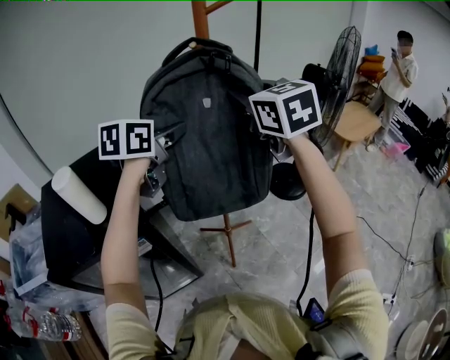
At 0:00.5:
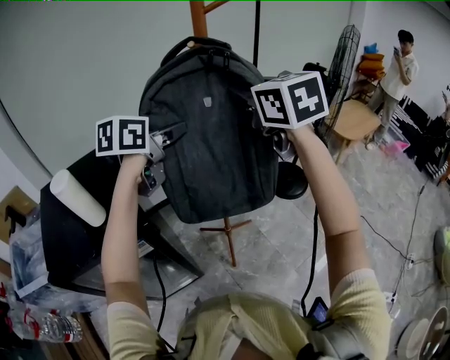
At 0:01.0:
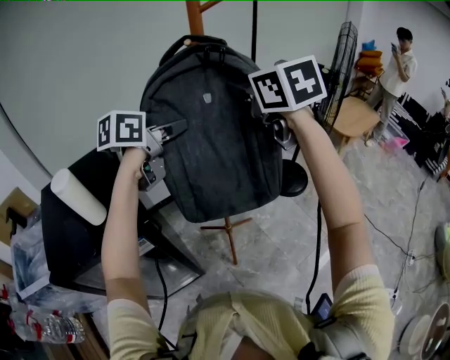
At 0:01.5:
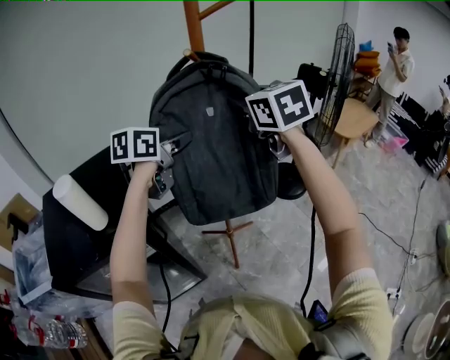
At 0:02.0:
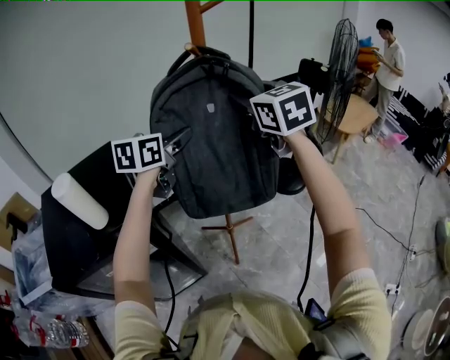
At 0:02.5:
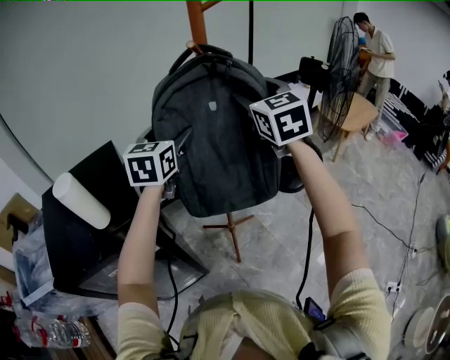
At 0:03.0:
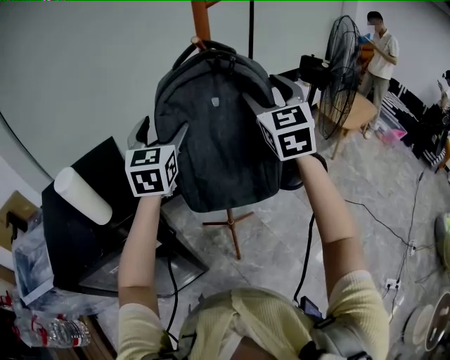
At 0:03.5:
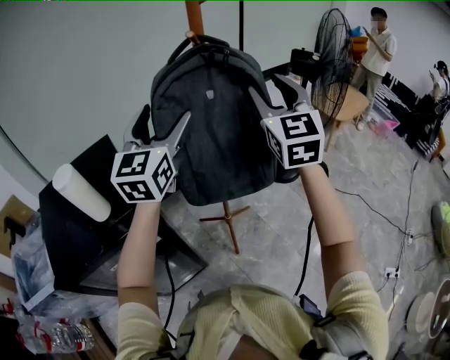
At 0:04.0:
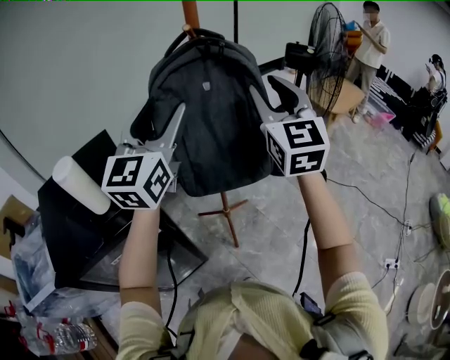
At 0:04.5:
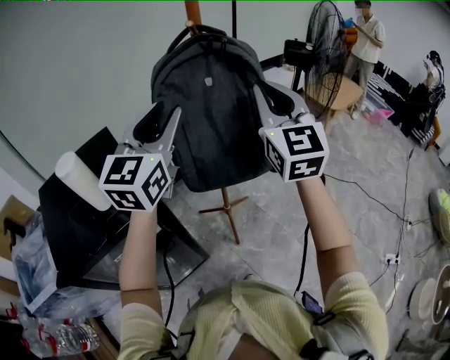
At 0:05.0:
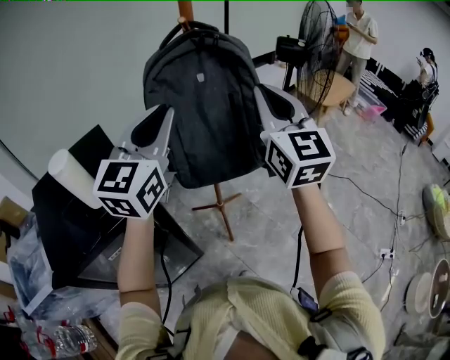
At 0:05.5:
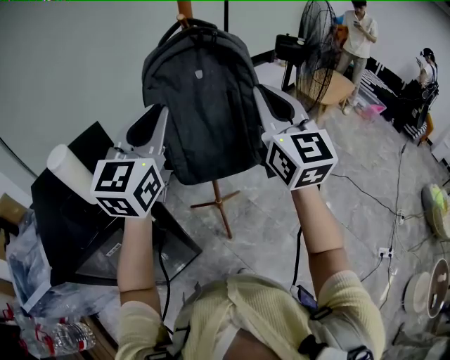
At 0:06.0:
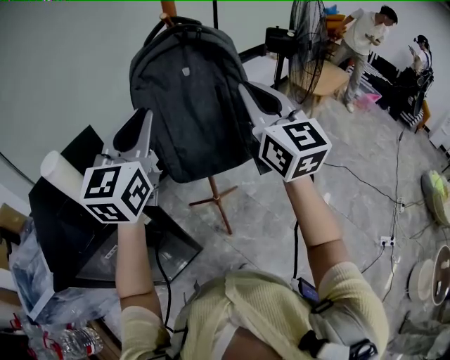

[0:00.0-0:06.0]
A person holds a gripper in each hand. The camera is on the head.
0:00.0 to 0:02.0: The grippers stay close to where they were, moving slightly.
0:02.0 to 0:04.0: The right gripper goes roughly 10 cm backward, rotates roughly 30 degrees, and opens, then closes once more; the left gripper travels backward and upward by some 15 cm, changes its angle by approximately 40 degrees, and opens, then closes once more.
0:04.0 to 0:06.0: The left gripper closes its fingers. Meanwhile the right gripper shifts some 5 cm backward, and closes up.

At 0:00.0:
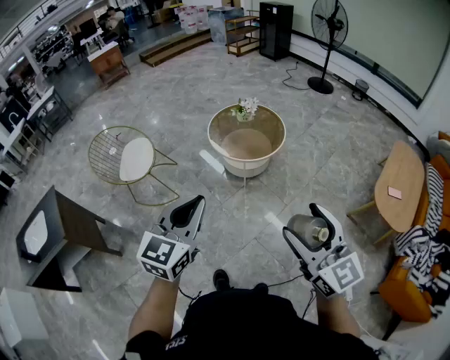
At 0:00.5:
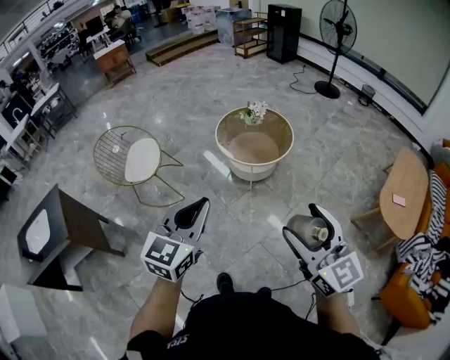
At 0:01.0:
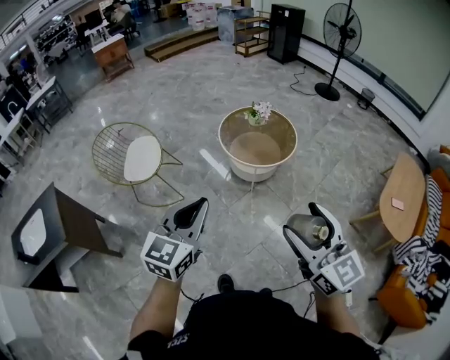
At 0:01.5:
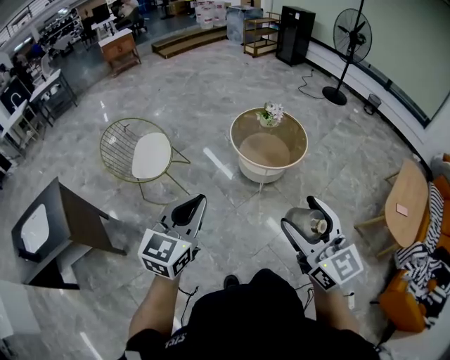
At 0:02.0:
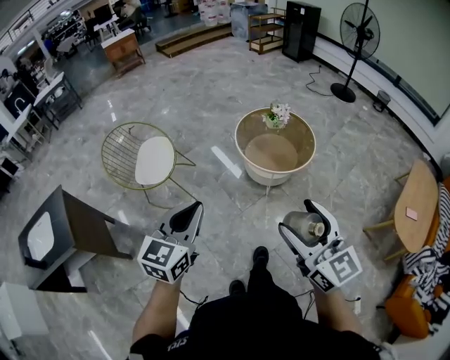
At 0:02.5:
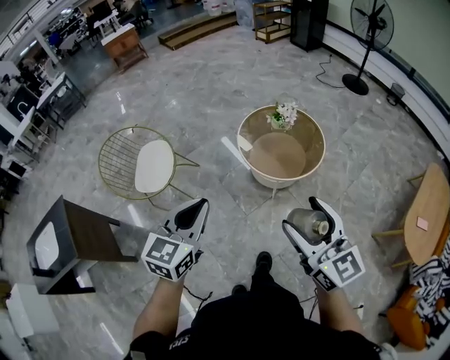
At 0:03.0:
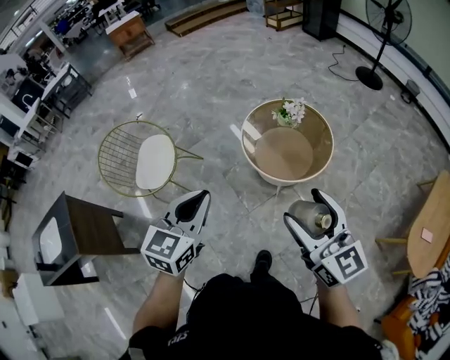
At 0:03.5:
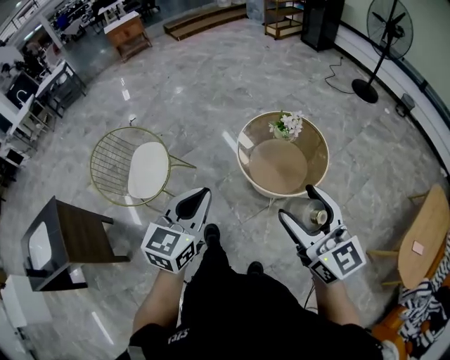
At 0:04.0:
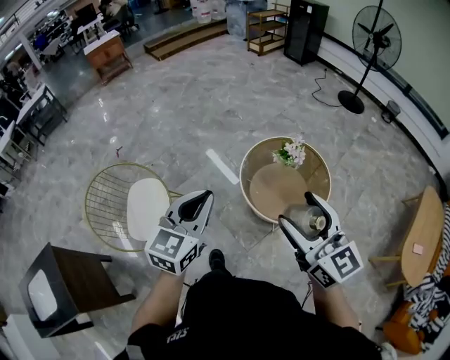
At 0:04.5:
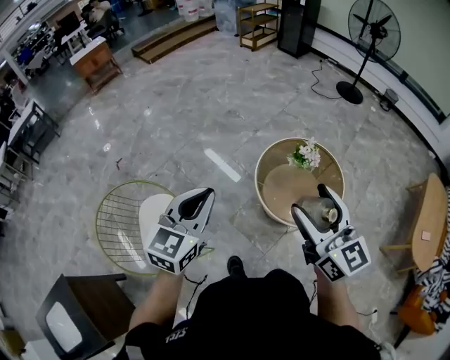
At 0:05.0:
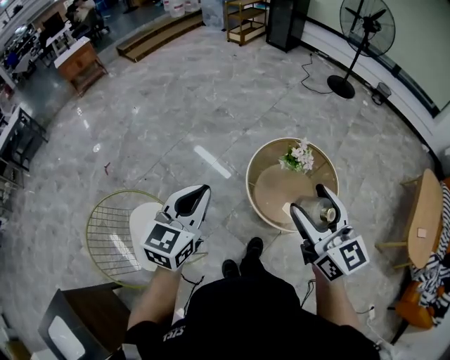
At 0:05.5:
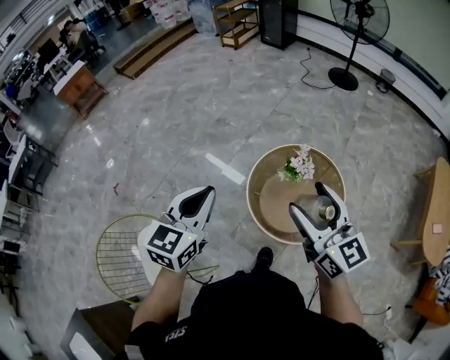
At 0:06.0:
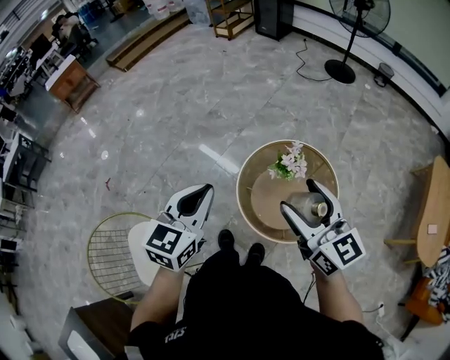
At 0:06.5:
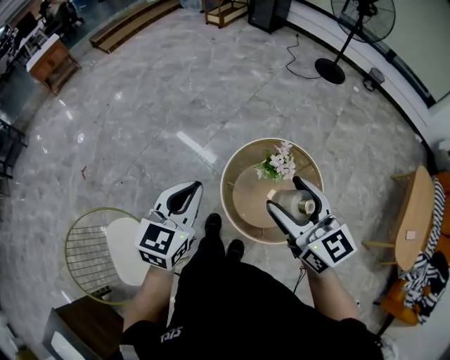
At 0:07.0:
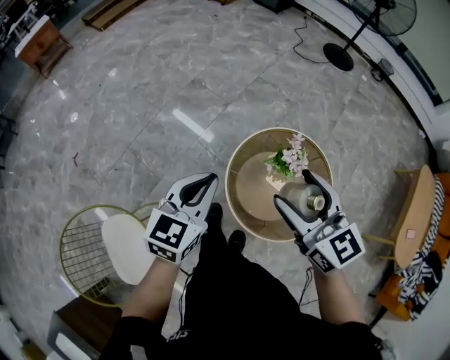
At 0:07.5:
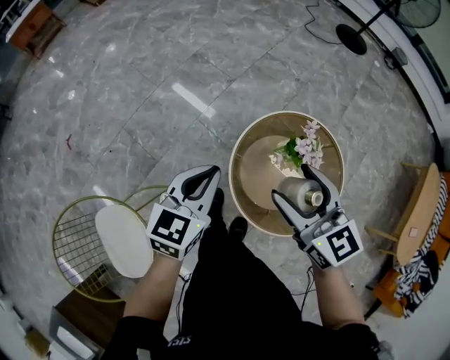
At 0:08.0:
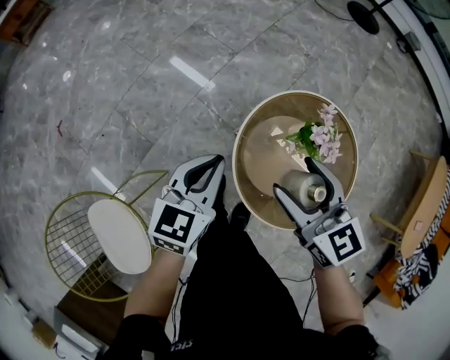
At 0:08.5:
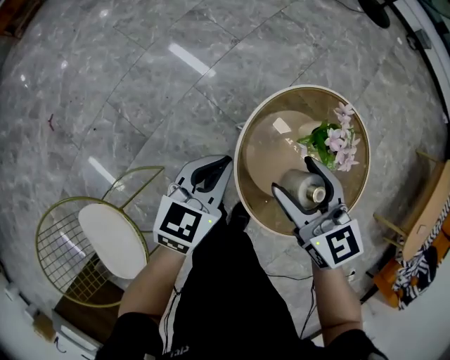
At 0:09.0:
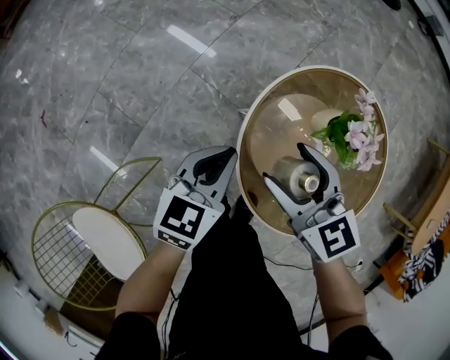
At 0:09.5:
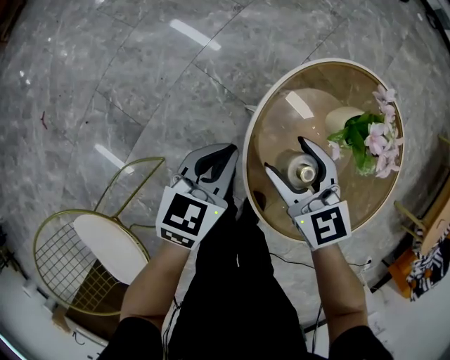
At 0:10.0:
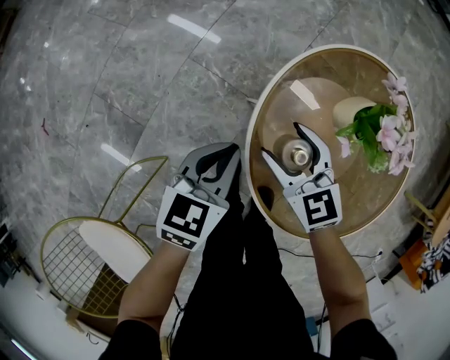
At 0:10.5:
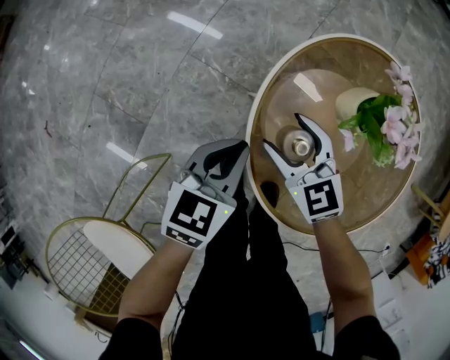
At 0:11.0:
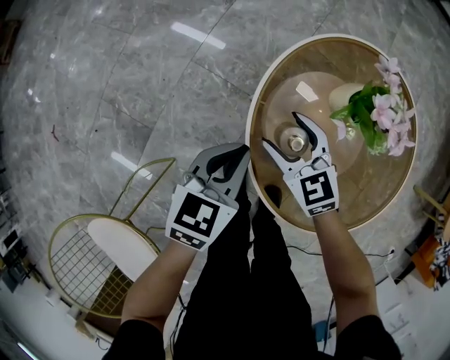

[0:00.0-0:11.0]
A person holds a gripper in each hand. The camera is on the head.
0:00.0 to 0:02.0: The two grippers go about 25 cm to the left and forward.
0:02.0 to 0:03.5: The left gripper is displaced forward and to the right by about 30 cm. The right gripper is displaced forward by some 30 cm.
0:03.5 to 0:05.5: Both grippers move forward, roughly 40 cm. The left gripper rotates roughly 20 degrees. Meanwhile the right gripper turns by approximately 20 degrees.
0:05.5 to 0:07.5: The grippers both shift downward and forward by about 30 cm. The right gripper swivels about 20 degrees.
0:07.5 to 0:09.0: Both grippers travel together downward, some 30 cm.
0:09.0 to 0:11.0: The left gripper goes approximately 5 cm downward. Meanwhile the right gripper moves downward, approximately 15 cm.

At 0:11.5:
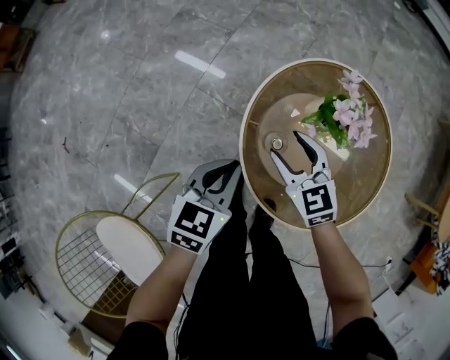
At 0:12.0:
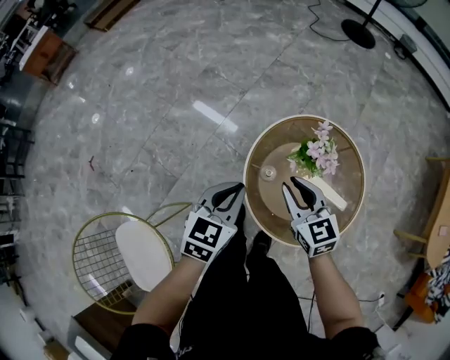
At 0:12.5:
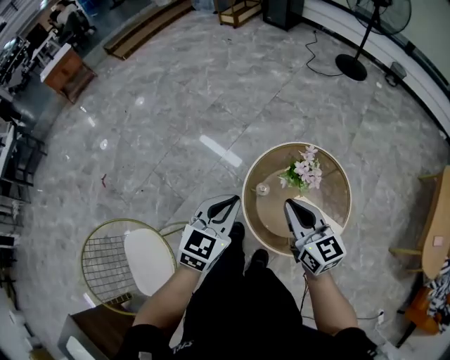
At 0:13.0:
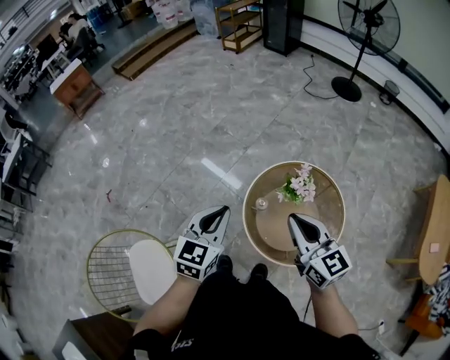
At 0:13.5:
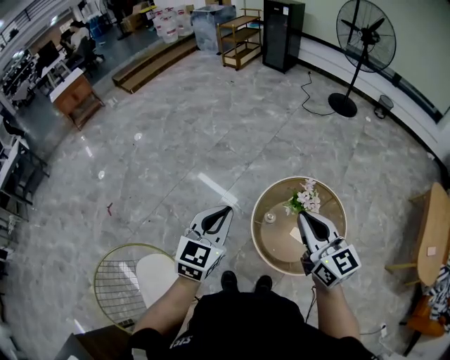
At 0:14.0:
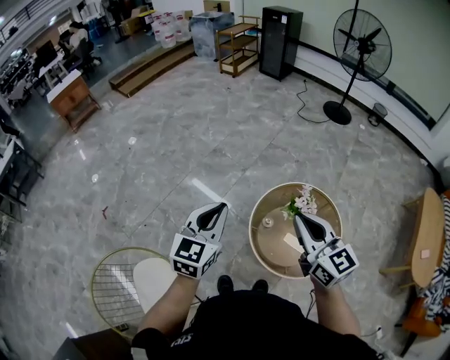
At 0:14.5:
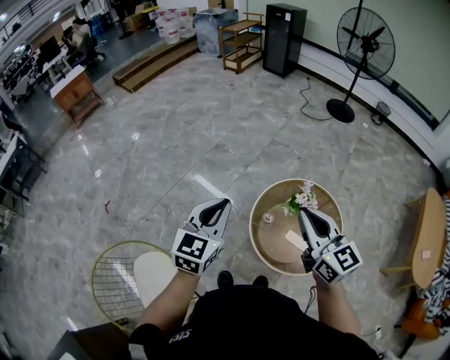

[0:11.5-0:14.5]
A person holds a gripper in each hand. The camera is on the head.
0:11.5 to 0:13.0: The right gripper travels upward and backward by some 50 cm, changes its angle by approximately 30 degrees, and closes up. The left gripper goes some 40 cm upward, and changes its angle by roughly 30 degrees.
0:13.0 to 0:14.5: The two grippers go some 10 cm upward and to the left.

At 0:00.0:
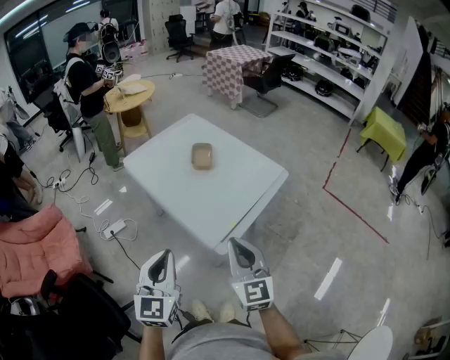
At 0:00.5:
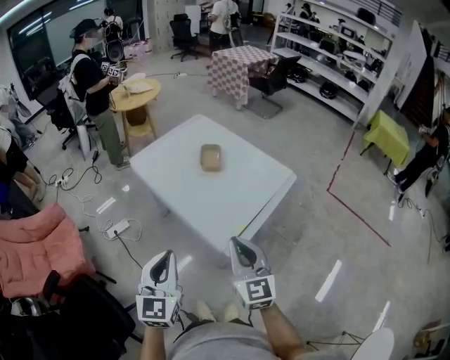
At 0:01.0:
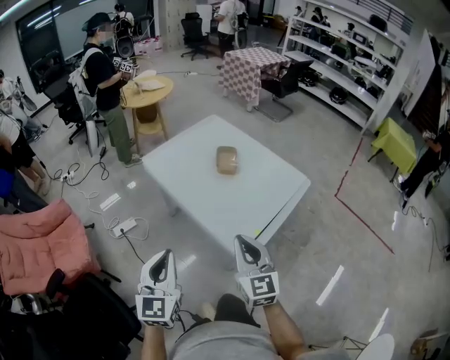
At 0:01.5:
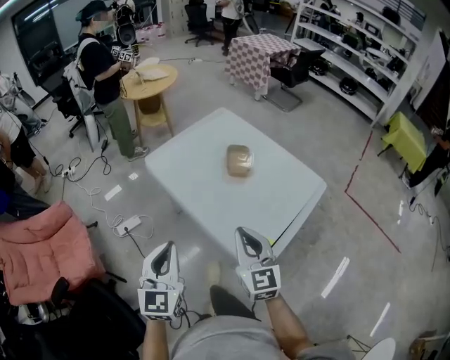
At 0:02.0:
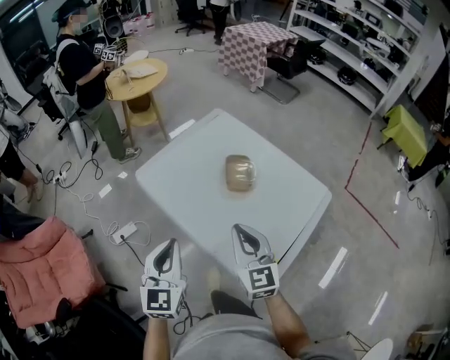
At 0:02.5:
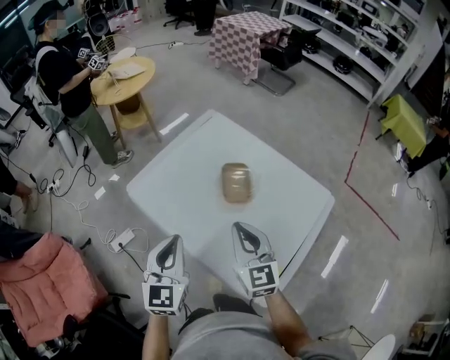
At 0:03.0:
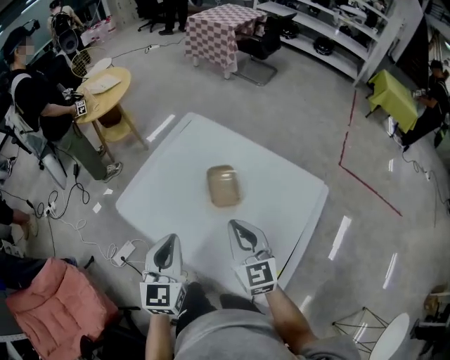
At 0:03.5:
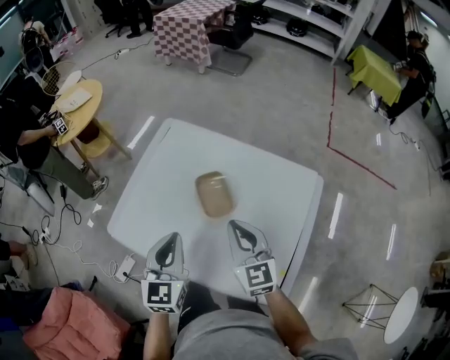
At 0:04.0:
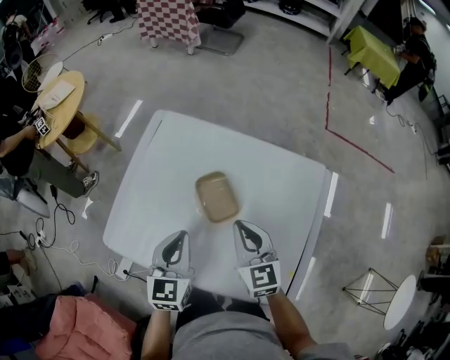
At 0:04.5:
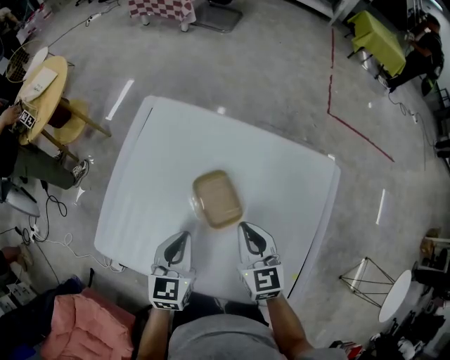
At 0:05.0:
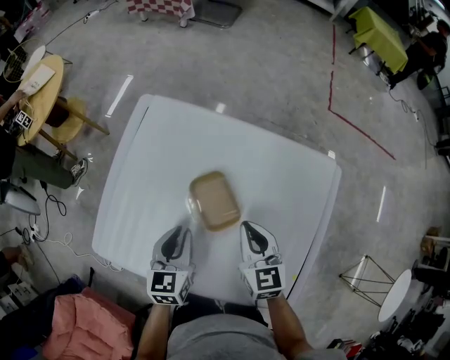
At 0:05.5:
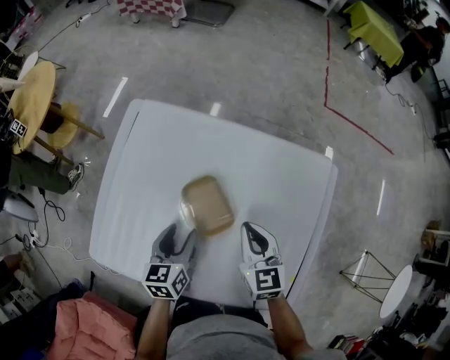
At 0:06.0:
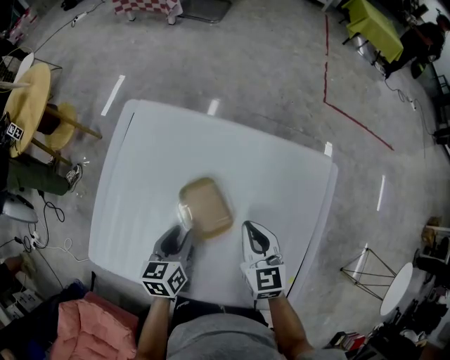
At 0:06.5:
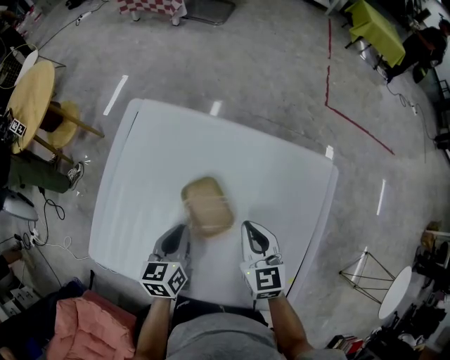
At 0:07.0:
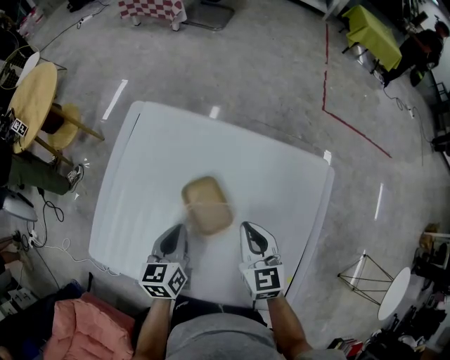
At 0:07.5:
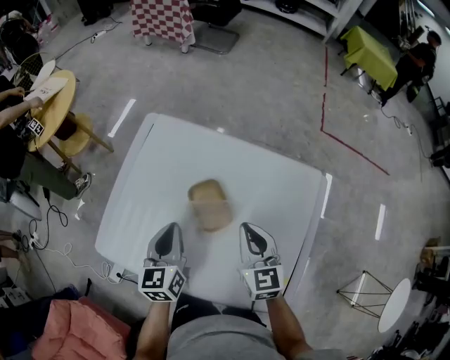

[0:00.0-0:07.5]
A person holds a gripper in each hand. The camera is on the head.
0:00.0 to 0:02.0: The left gripper travels forward by approximately 30 cm. The right gripper heads forward and to the left, covering about 35 cm.
0:02.0 to 0:04.0: The right gripper moves some 25 cm, and changes its angle by roughly 30 degrees. Meanwhile the left gripper ends up approximately 30 cm from where it was, and changes its angle by some 30 degrees.
0:04.0 to 0:05.5: The right gripper travels downward by some 10 cm. The left gripper moves downward and forward, approximately 15 cm, turns by approximately 20 degrees, and opens.
0:05.5 to 0:07.5: The grippers both shift upward by approximately 10 cm. The left gripper closes its fingers.
